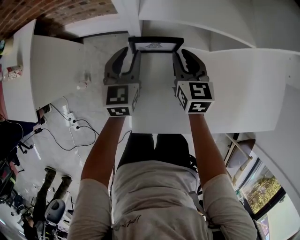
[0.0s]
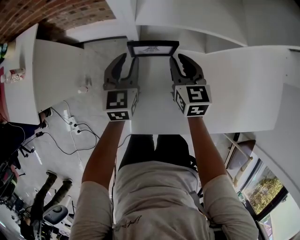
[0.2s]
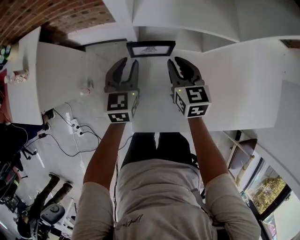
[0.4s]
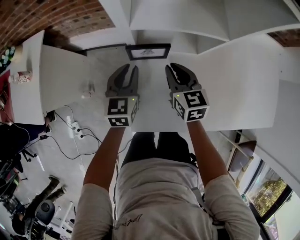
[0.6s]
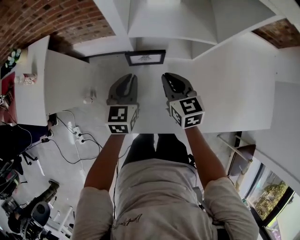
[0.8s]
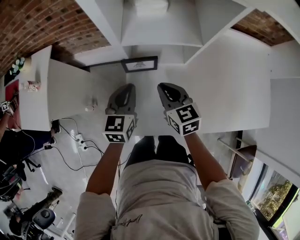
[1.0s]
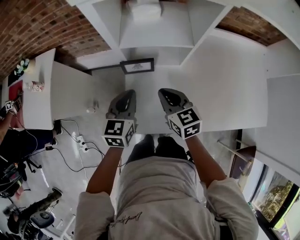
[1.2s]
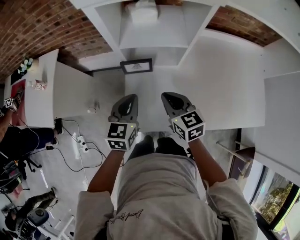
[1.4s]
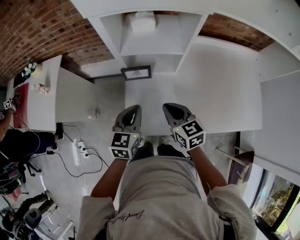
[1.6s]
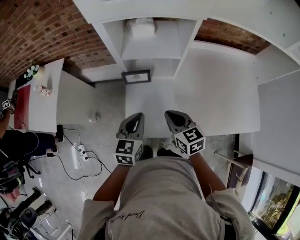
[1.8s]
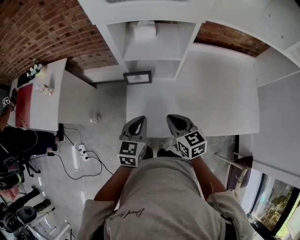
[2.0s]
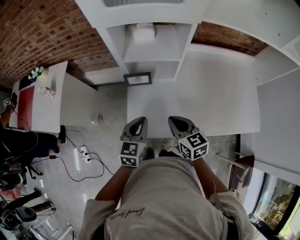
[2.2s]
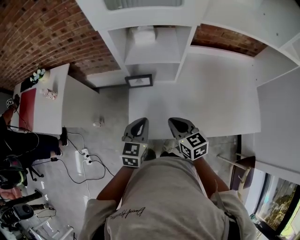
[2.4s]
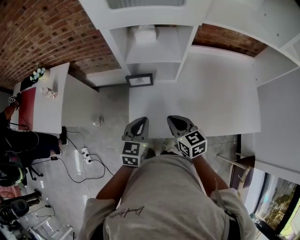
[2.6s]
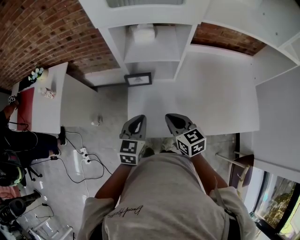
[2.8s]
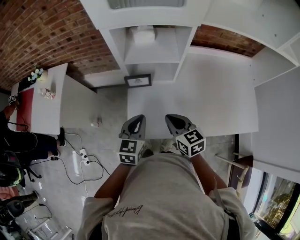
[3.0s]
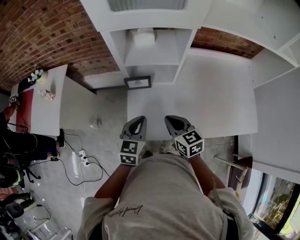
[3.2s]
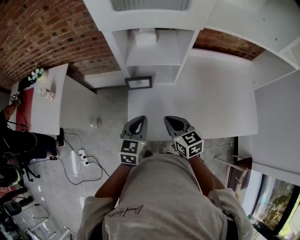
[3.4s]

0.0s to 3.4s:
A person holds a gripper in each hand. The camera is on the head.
0.0s to 1.6s: The two grippers go roughly 25 cm backward and upward. The left gripper closes its fingers.
1.6s to 3.4s: There are only small adjustments of the grippers.

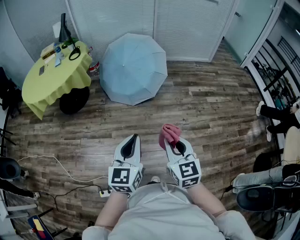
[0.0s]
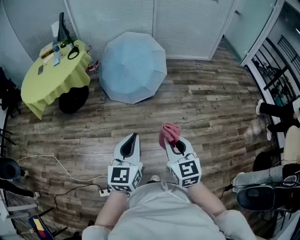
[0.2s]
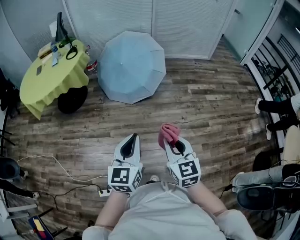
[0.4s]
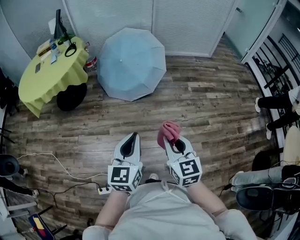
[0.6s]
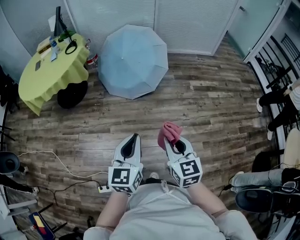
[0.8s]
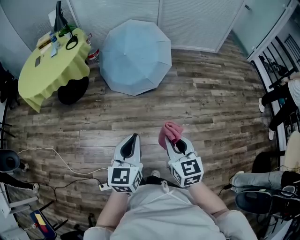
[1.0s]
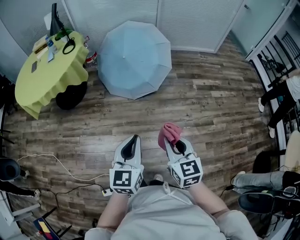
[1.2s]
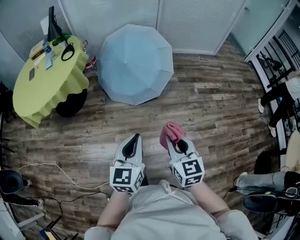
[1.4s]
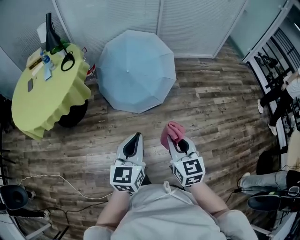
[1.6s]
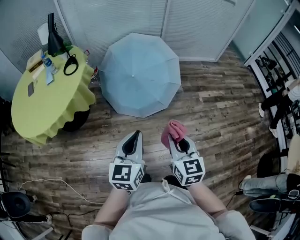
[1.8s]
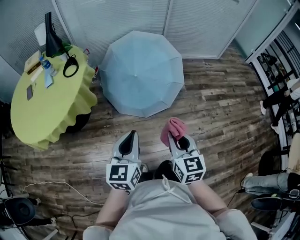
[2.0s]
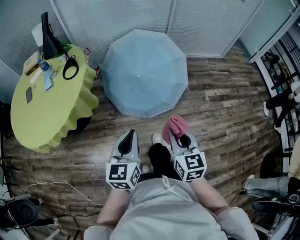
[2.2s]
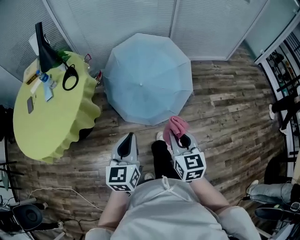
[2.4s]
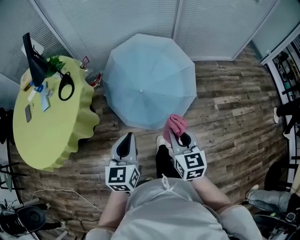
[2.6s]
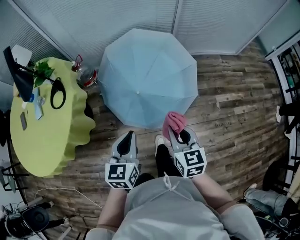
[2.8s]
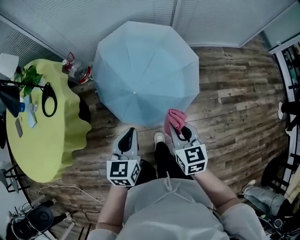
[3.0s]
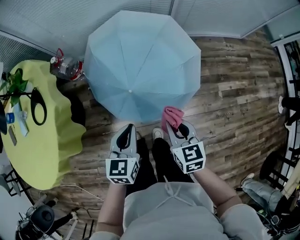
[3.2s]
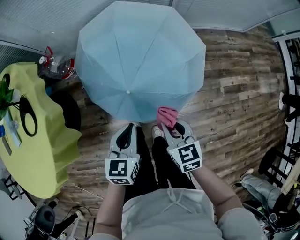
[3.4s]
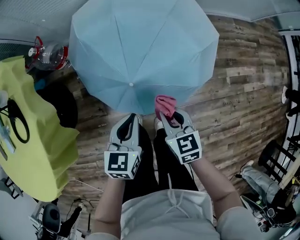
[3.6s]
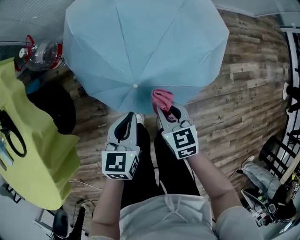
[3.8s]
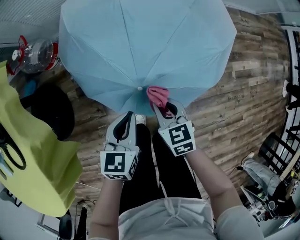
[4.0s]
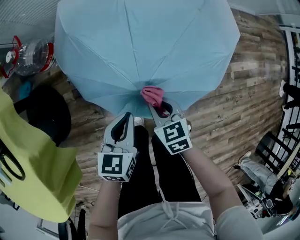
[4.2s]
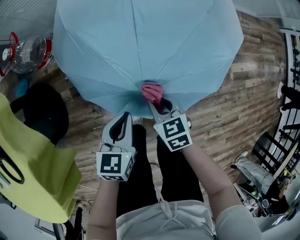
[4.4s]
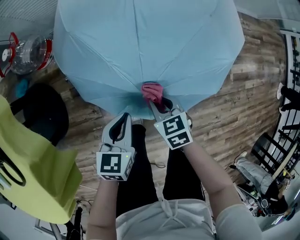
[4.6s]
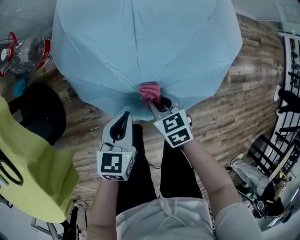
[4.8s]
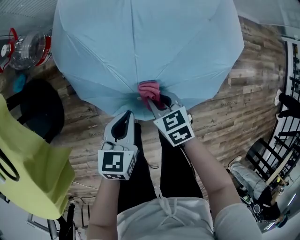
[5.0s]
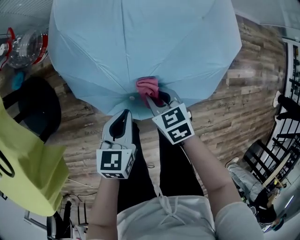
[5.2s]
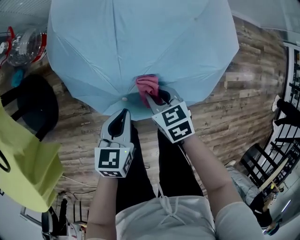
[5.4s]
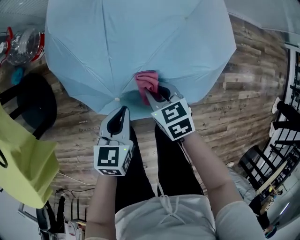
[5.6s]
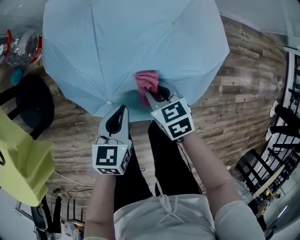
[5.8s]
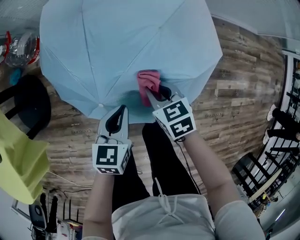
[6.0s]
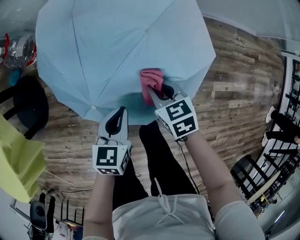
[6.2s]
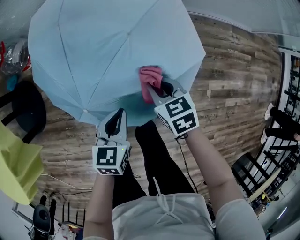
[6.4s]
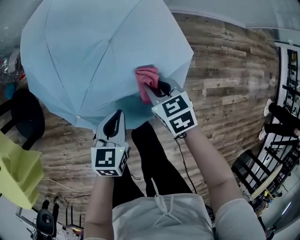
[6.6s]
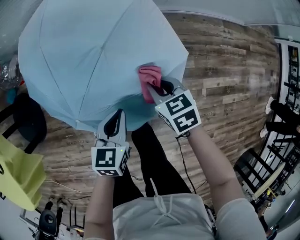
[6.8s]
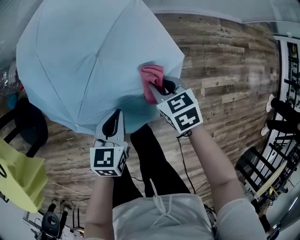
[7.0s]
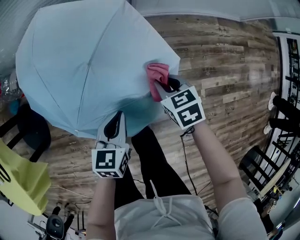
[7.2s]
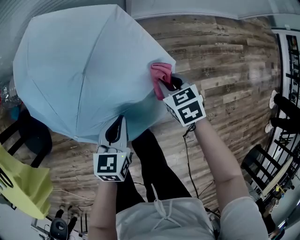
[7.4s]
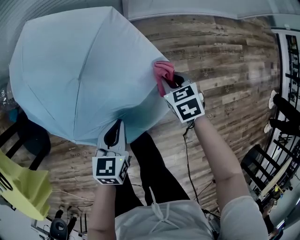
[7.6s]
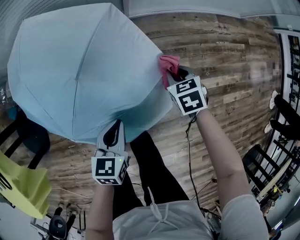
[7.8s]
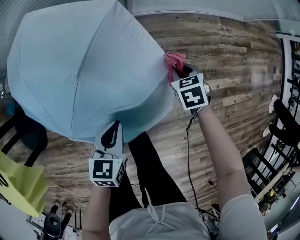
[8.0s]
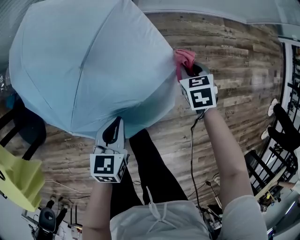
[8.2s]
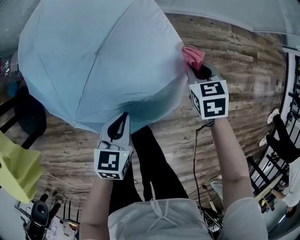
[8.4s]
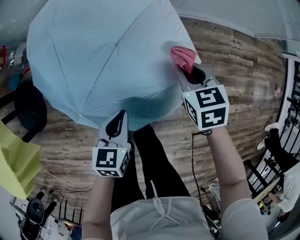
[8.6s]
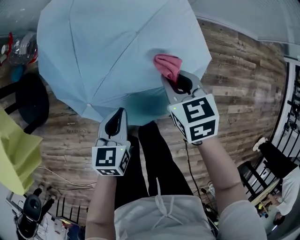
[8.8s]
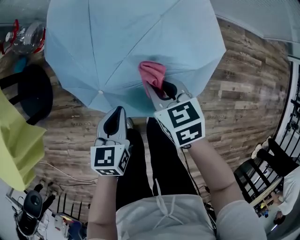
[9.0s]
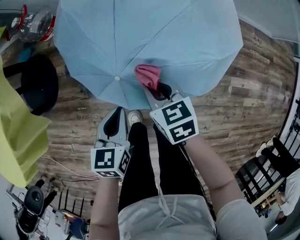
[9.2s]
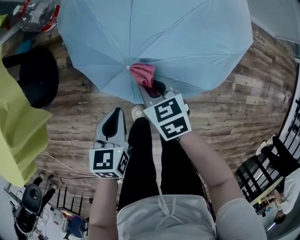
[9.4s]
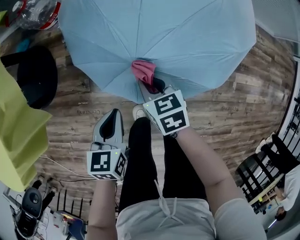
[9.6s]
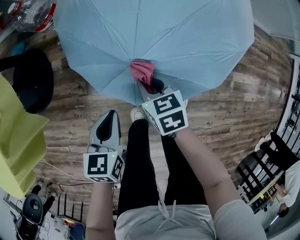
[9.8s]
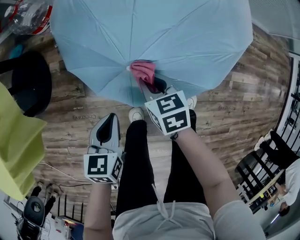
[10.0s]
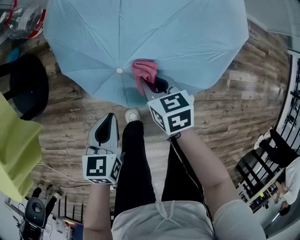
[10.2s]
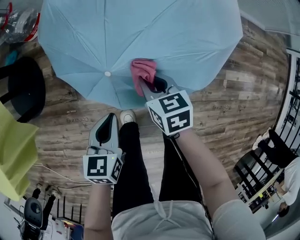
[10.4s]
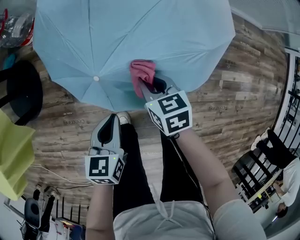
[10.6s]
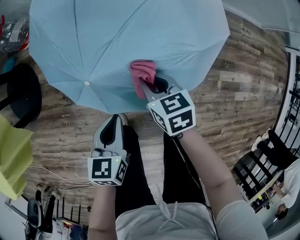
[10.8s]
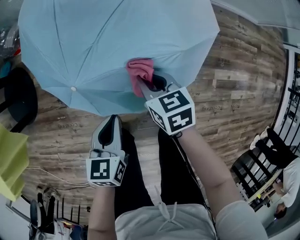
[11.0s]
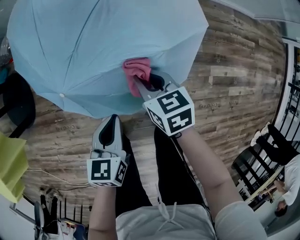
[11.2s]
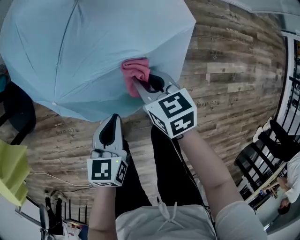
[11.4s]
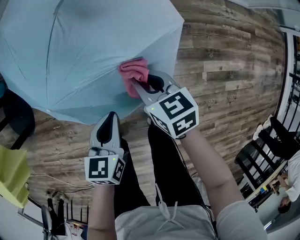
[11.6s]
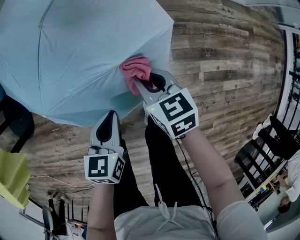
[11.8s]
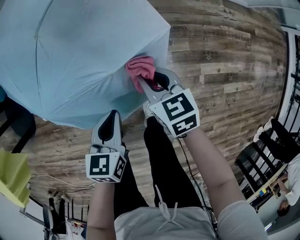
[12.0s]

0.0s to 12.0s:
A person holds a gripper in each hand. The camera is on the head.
0.0s to 1.6s: Both grippers travel together forward and to the left, approximately 30 cm.
1.6s to 3.0s: Both grippers are carried forward, about 60 cm.
3.0s to 4.4s: The left gripper heads downward and forward, covering approximately 40 cm, while the right gripper is displaced downward, forward and to the left by approximately 50 cm, and changes its angle by about 20 degrees.
4.4s to 6.0s: Both grippers travel together to the right, about 20 cm.
6.0s to 7.6s: Both grippers move to the right, about 25 cm.
7.6s to 9.0s: The right gripper shifts by roughly 35 cm. Meanwhile the left gripper shifts by approximately 25 cm.
9.0s to 10.4s: The right gripper heads downward and to the left, covering about 15 cm. The left gripper travels to the left, downward and backward by roughly 15 cm.
10.4s to 12.0s: Both grippers travel together to the right, roughly 35 cm.

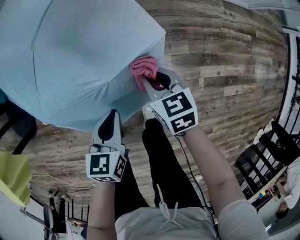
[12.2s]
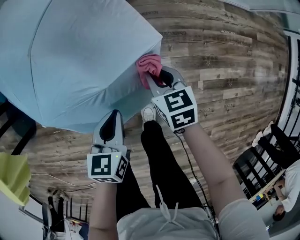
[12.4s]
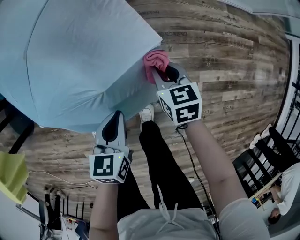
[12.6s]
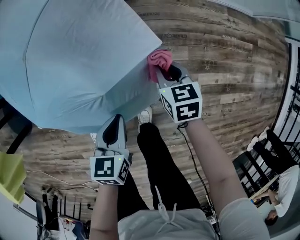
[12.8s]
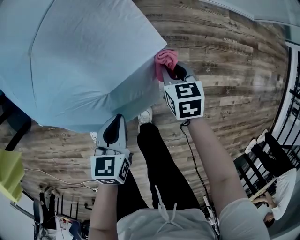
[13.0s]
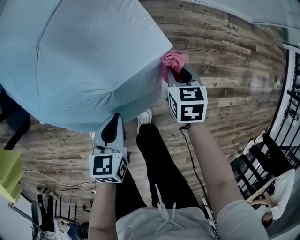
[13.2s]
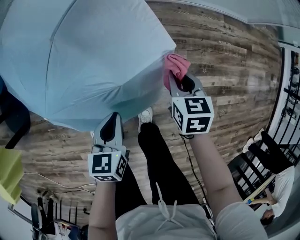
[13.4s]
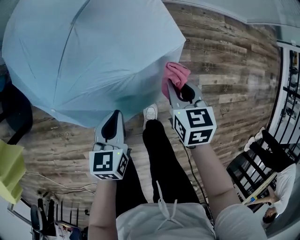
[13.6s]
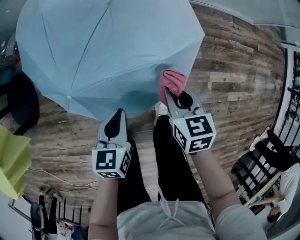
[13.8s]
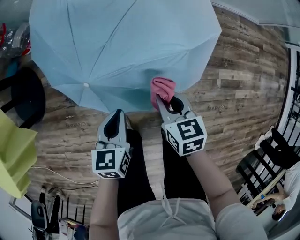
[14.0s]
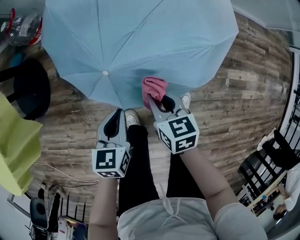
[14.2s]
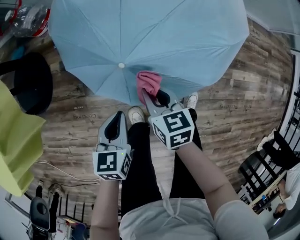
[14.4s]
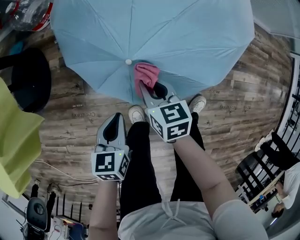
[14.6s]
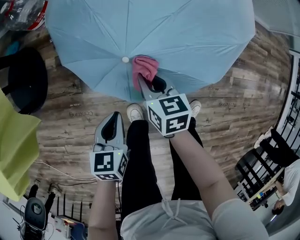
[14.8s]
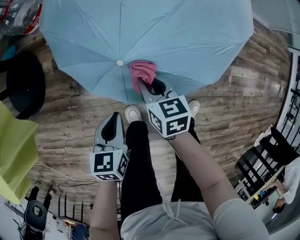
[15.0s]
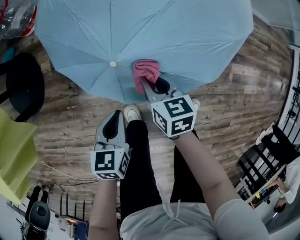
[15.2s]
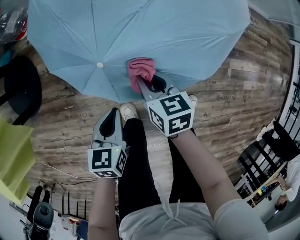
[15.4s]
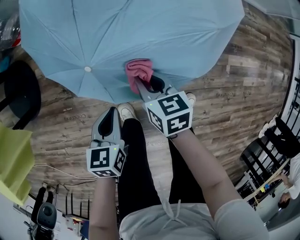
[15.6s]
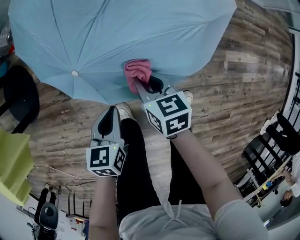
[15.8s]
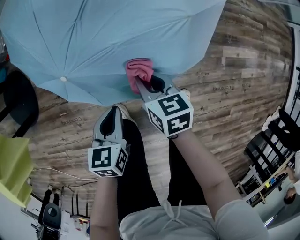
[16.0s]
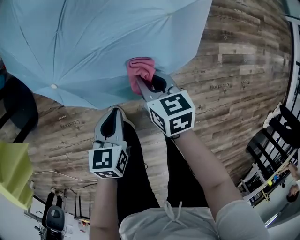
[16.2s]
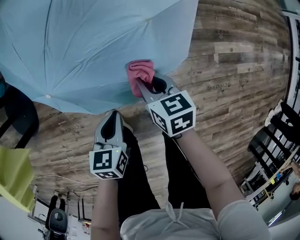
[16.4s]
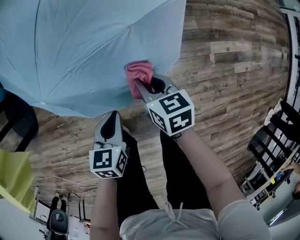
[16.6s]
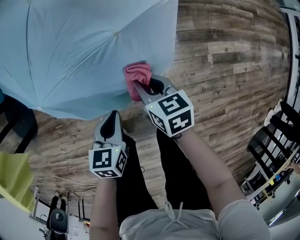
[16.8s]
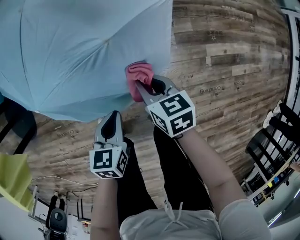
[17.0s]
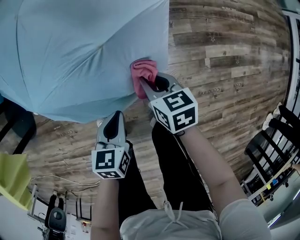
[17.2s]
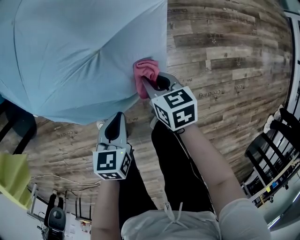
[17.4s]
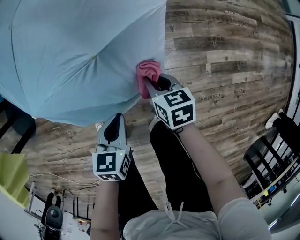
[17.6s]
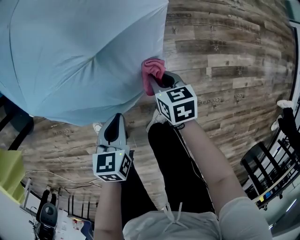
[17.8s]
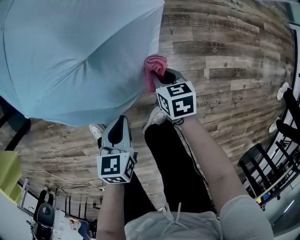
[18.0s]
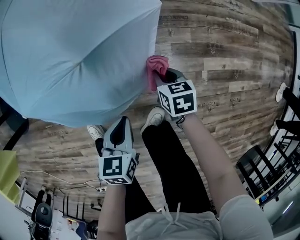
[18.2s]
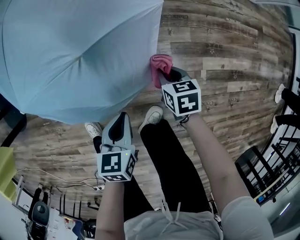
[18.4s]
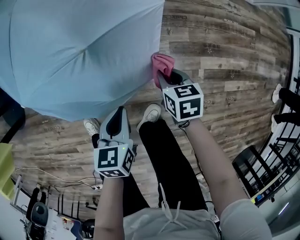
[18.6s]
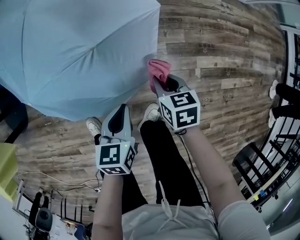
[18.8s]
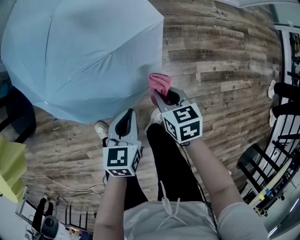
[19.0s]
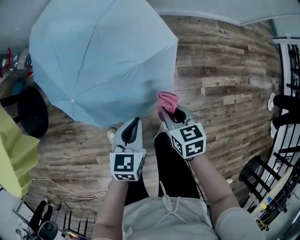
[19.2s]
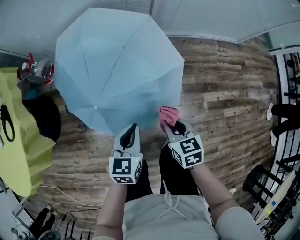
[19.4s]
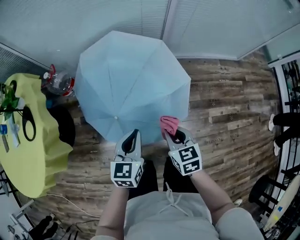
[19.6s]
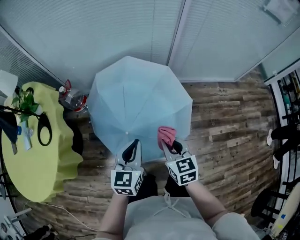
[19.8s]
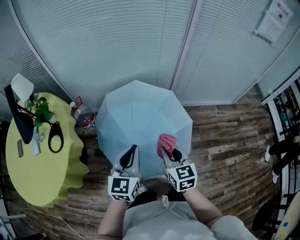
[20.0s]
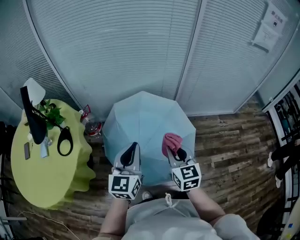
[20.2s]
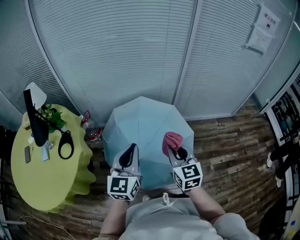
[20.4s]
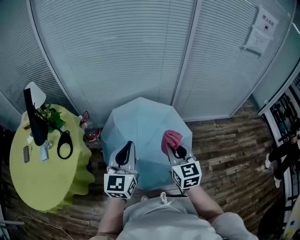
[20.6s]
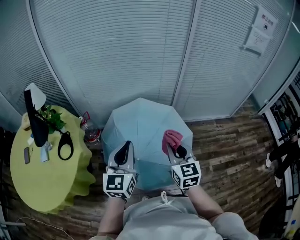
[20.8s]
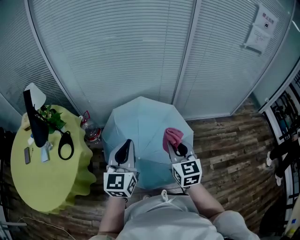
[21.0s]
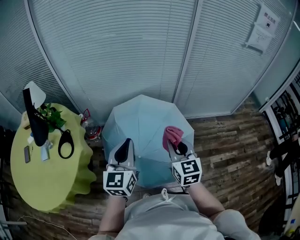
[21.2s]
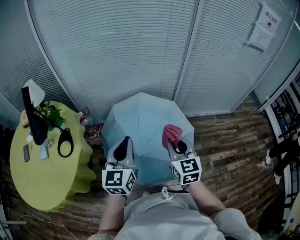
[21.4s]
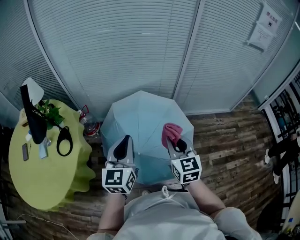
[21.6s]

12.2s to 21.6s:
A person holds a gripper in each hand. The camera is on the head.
12.2s to 13.8s: The left gripper moves to the left and backward, about 15 cm. The right gripper moves to the left, backward and upward, roughly 15 cm.
13.8s to 15.4s: The two grippers go approximately 25 cm to the left and downward.
15.4s to 17.0s: Both grippers travel together to the right, about 30 cm.
17.0s to 18.4s: The right gripper heads to the right and downward, covering about 20 cm. The left gripper goes some 10 cm to the right.
18.4s to 20.0s: The grippers both shift upward and to the left by about 80 cm. The left gripper tips its fingers upward by about 40 degrees. Meanwhile the right gripper tips its fingers upward by approximately 40 degrees.
20.0s to 21.6s: The left gripper is displaced upward and to the left by approximately 10 cm; the right gripper goes approximately 10 cm upward.
